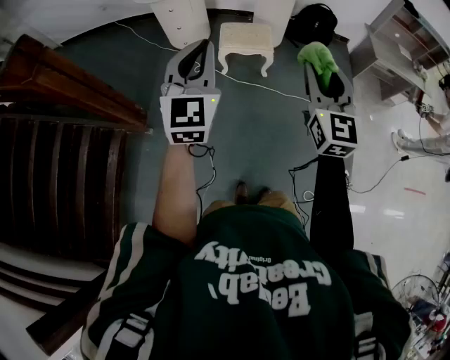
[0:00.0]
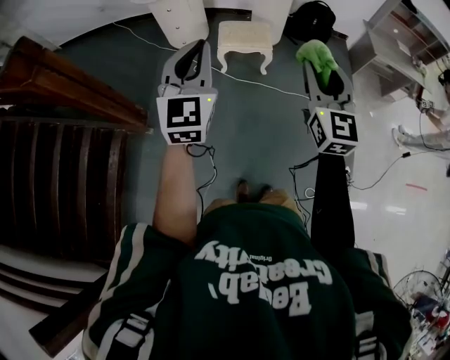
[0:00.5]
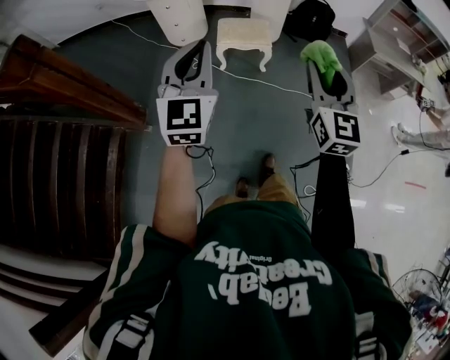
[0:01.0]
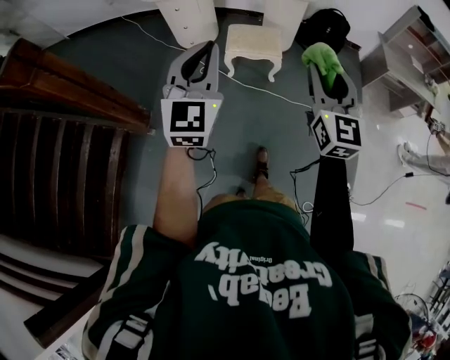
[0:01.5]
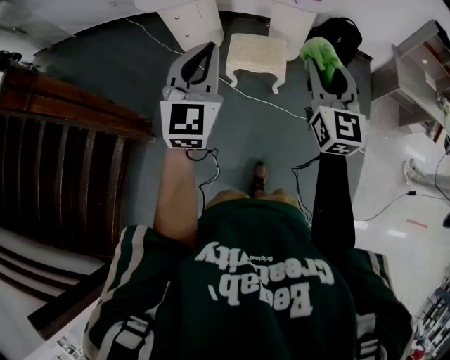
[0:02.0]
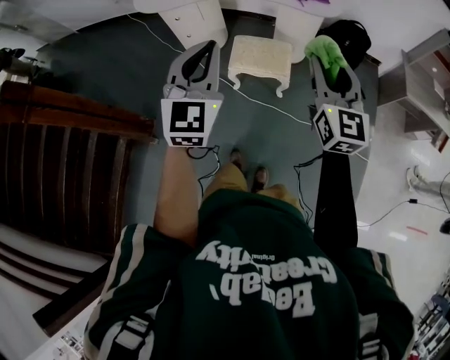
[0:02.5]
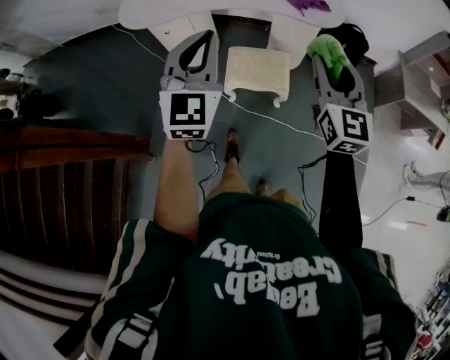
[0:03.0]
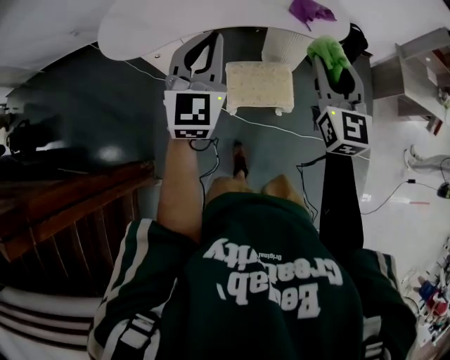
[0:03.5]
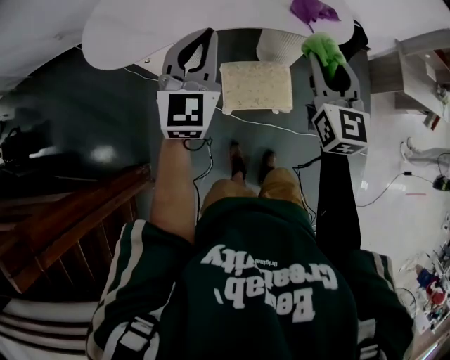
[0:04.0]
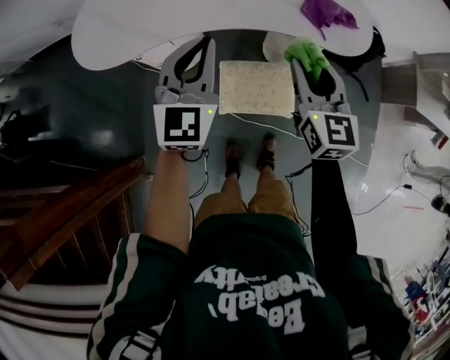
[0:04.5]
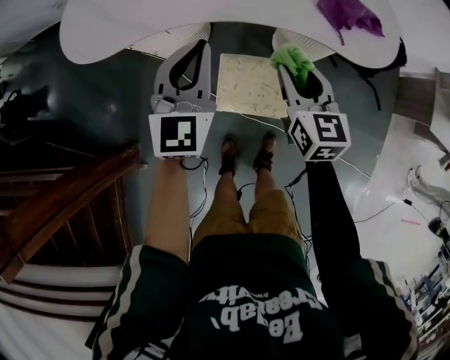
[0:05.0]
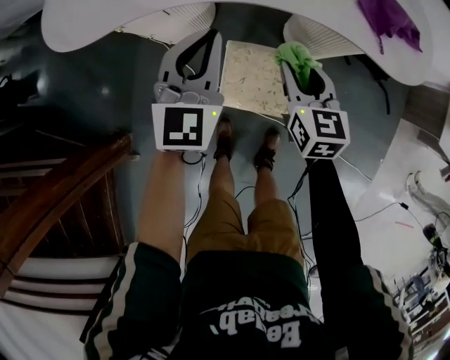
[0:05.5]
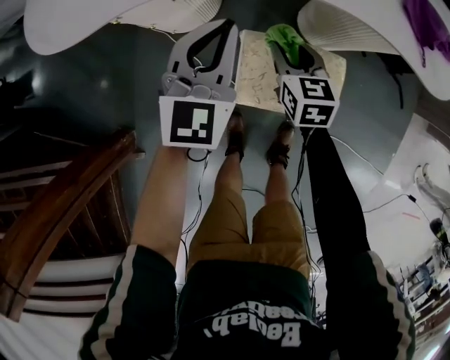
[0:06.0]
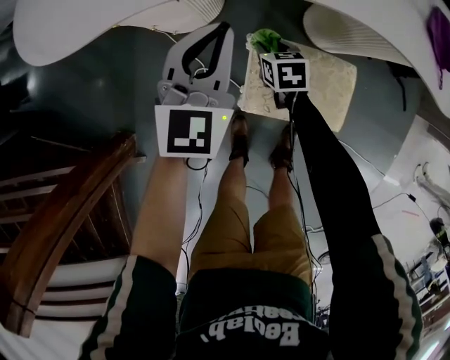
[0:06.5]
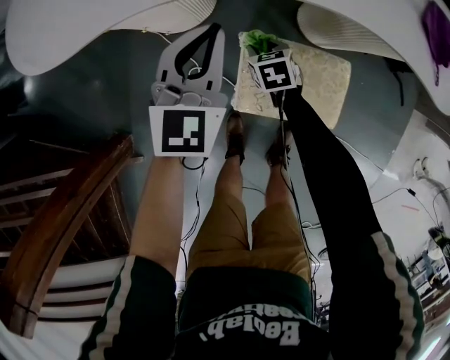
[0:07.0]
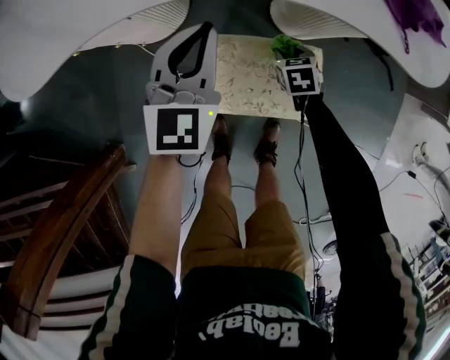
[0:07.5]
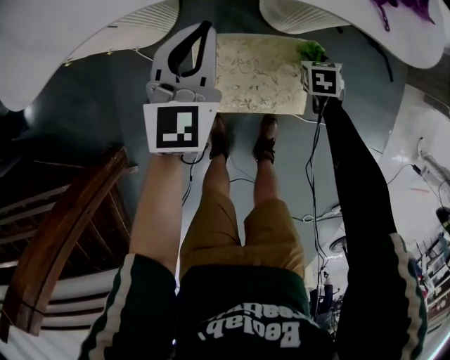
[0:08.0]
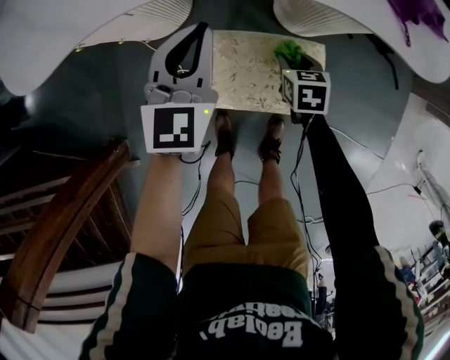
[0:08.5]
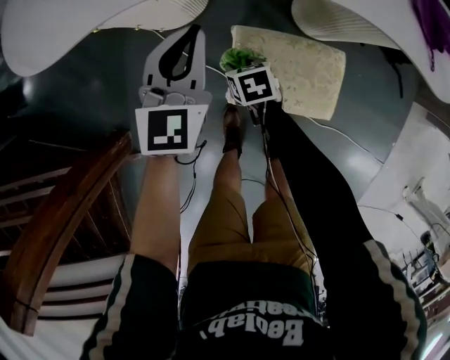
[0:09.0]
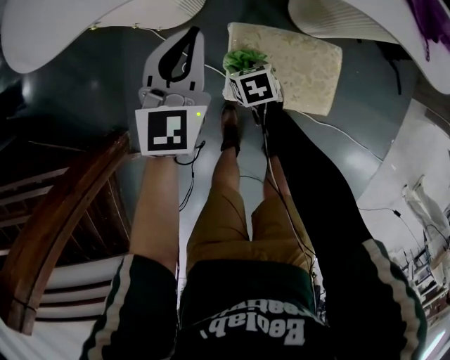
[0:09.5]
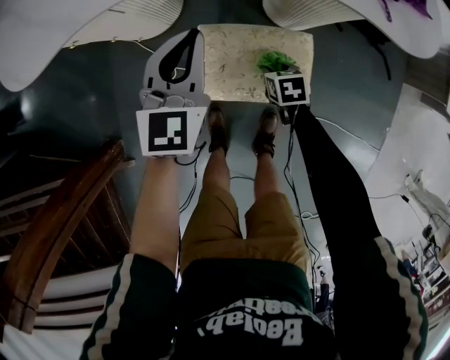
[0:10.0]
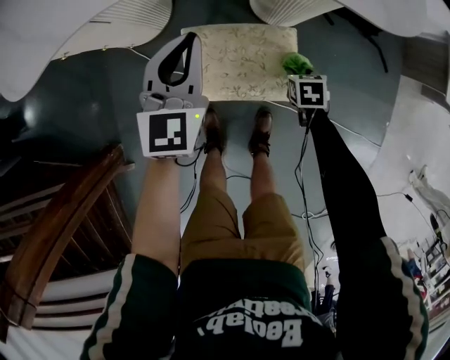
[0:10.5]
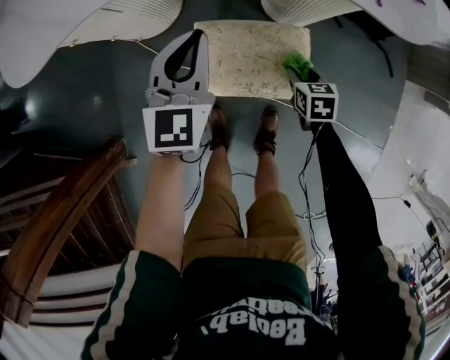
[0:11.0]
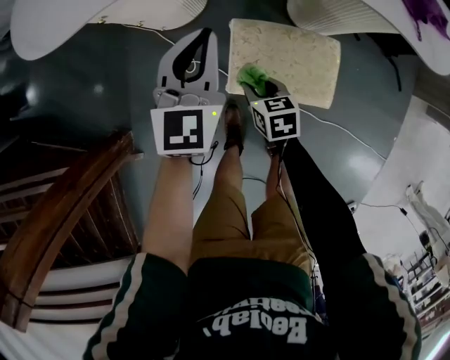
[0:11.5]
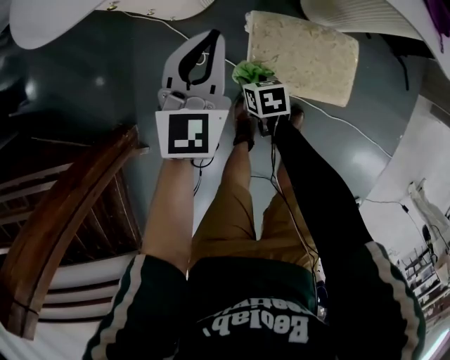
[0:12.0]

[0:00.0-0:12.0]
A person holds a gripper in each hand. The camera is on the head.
0:00.0 to 0:02.0: Both grippers travel together forward, about 20 cm.
0:02.0 to 0:04.0: Both grippers are carried forward, some 40 cm.
0:04.0 to 0:06.0: Both grippers travel together downward, approximately 35 cm. The right gripper swivels some 40 degrees.
0:06.0 to 0:08.0: The left gripper travels to the right by about 10 cm. Meanwhile the right gripper is displaced to the right and downward by about 30 cm, and points its fingers roughly 30 degrees further downward.
0:10.0 to 0:12.0: The left gripper is displaced to the left by approximately 10 cm, while the right gripper is displaced to the left by about 20 cm.

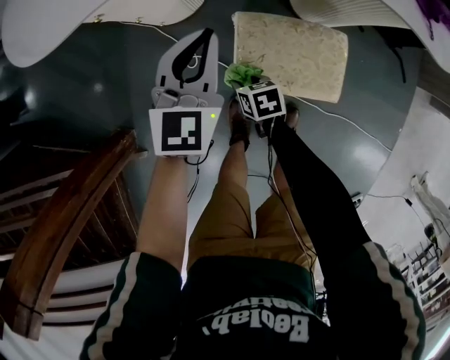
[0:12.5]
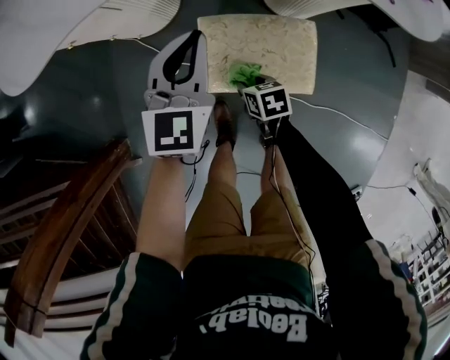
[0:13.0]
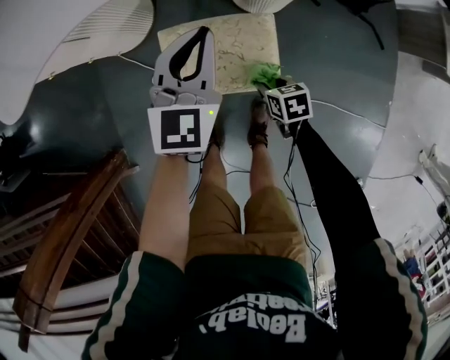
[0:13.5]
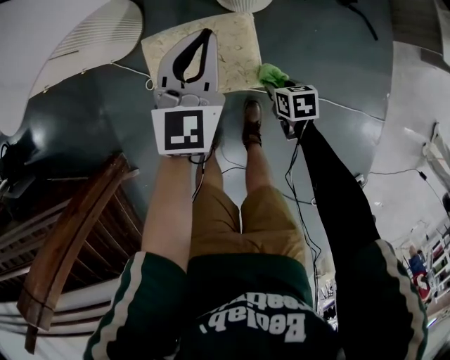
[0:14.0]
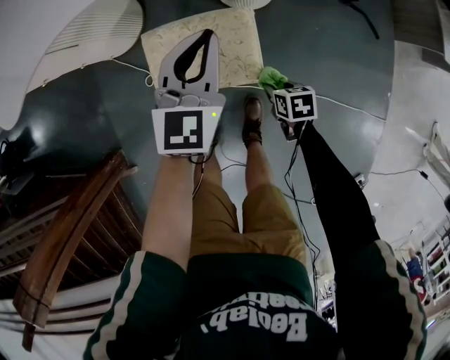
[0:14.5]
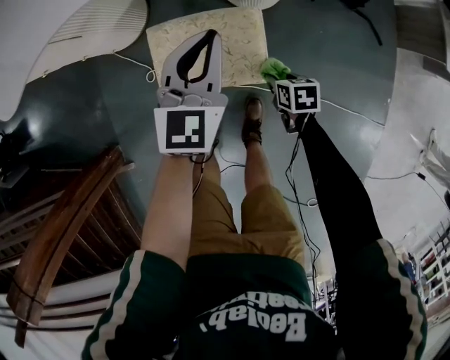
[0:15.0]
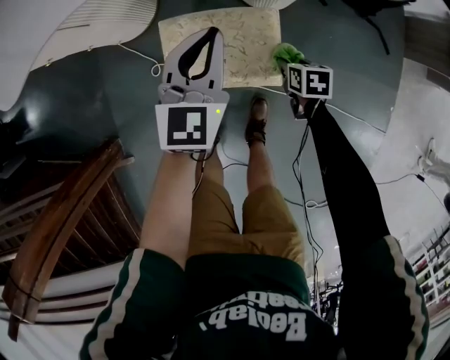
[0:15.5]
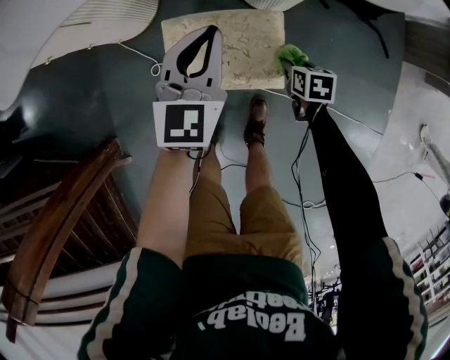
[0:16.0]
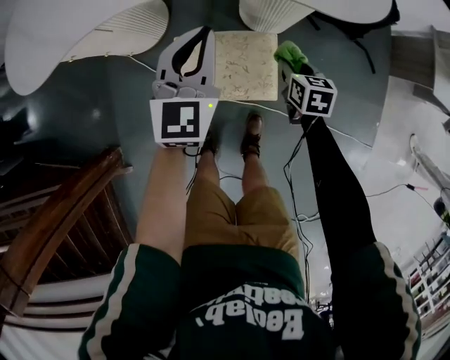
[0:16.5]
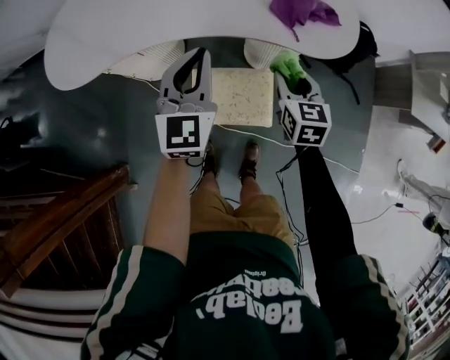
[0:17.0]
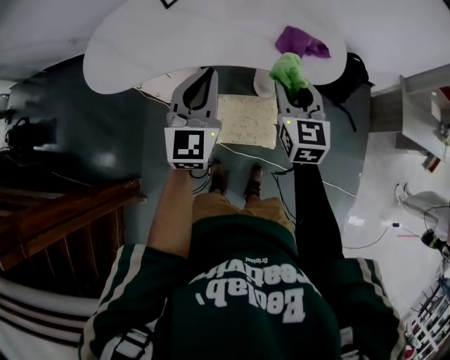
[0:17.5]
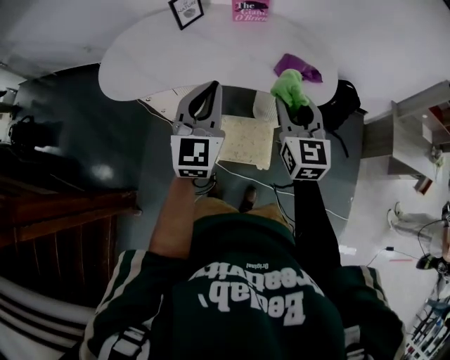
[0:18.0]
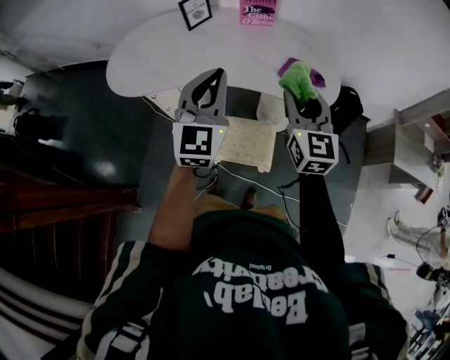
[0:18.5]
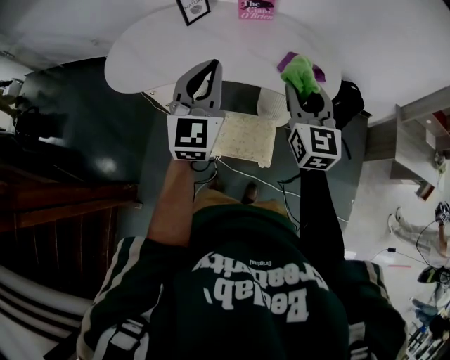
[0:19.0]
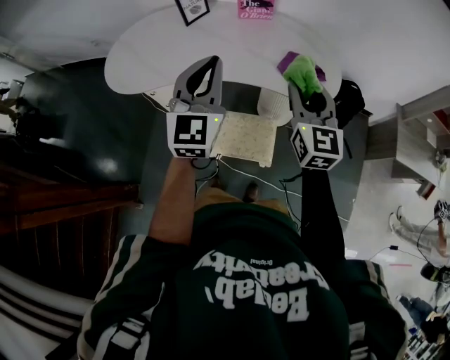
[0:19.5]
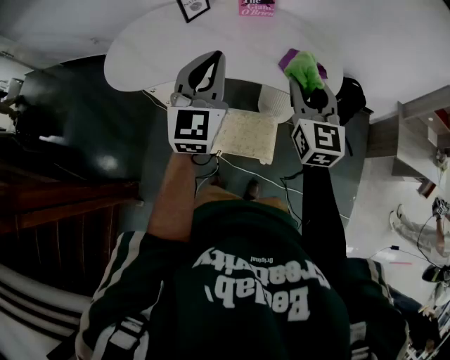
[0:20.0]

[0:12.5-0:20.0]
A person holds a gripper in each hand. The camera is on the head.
0:12.5 to 0:14.5: The left gripper shifts approximately 30 cm to the right; the right gripper travels to the right and backward by roughly 35 cm.
0:14.5 to 0:16.5: The right gripper travels forward and upward by some 20 cm, and turns by roughly 20 degrees. Meanwhile the left gripper travels to the left and upward by roughly 10 cm.
0:16.5 to 0:18.0: The left gripper goes approximately 30 cm upward, while the right gripper shifts approximately 50 cm upward, and tilts its fingers about 40 degrees upward.
0:18.0 to 0:20.0: The left gripper goes roughly 5 cm upward.

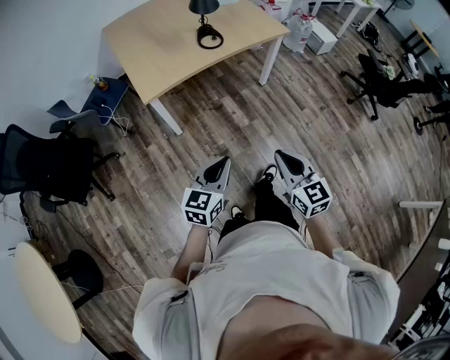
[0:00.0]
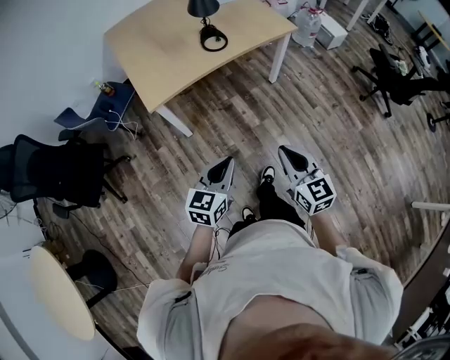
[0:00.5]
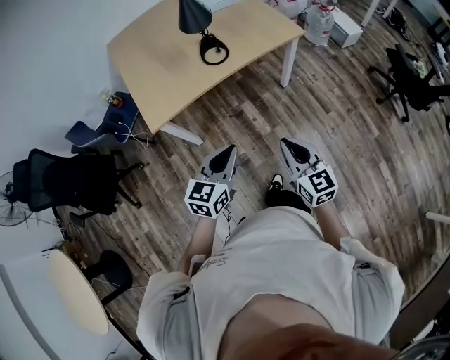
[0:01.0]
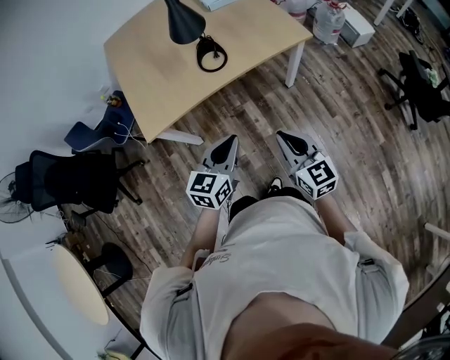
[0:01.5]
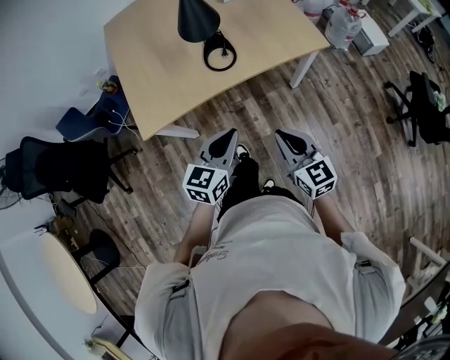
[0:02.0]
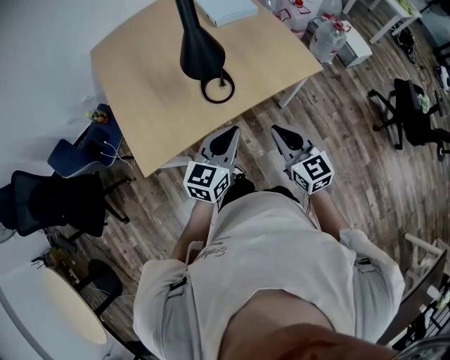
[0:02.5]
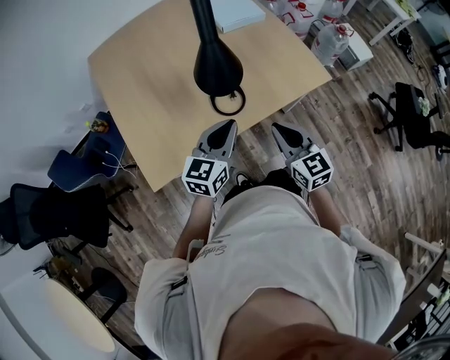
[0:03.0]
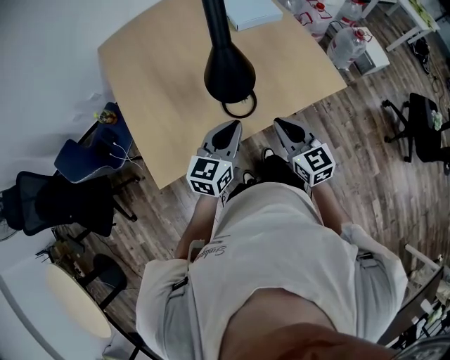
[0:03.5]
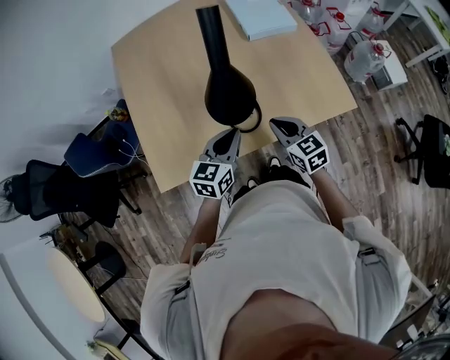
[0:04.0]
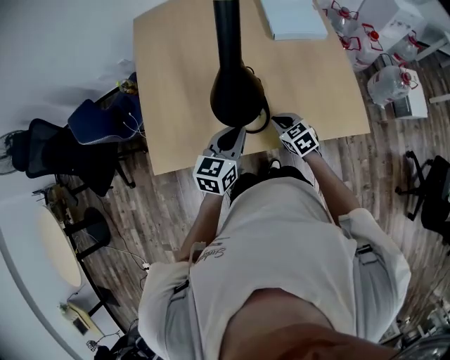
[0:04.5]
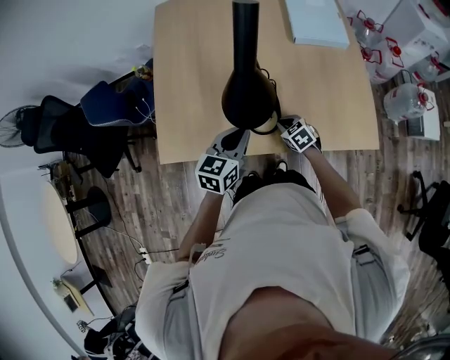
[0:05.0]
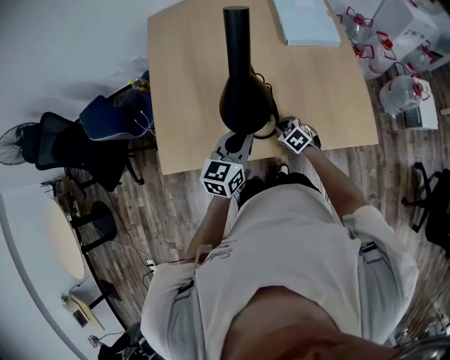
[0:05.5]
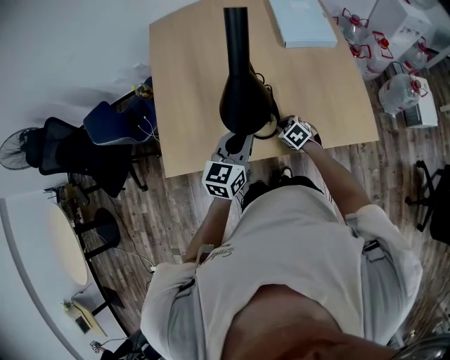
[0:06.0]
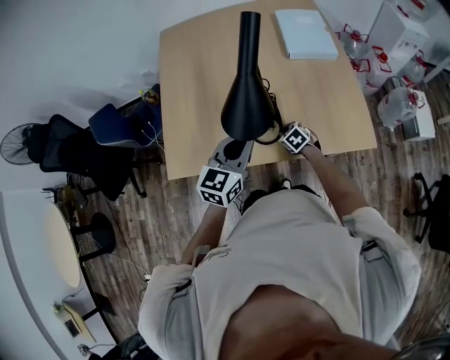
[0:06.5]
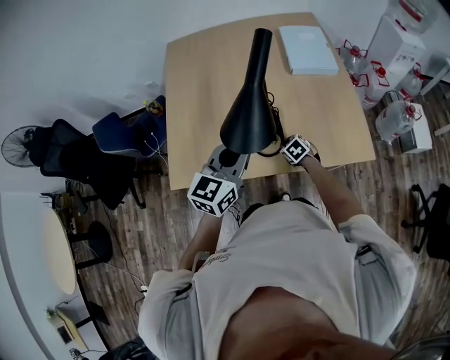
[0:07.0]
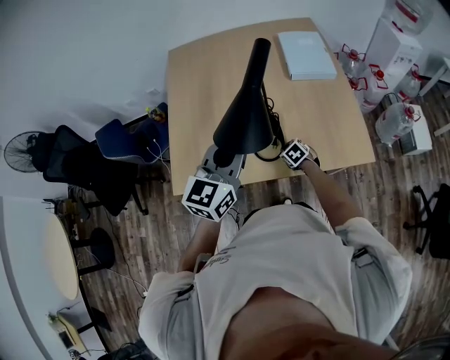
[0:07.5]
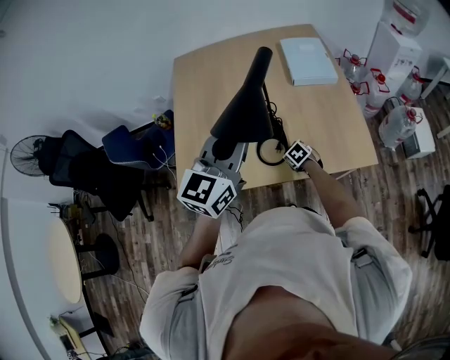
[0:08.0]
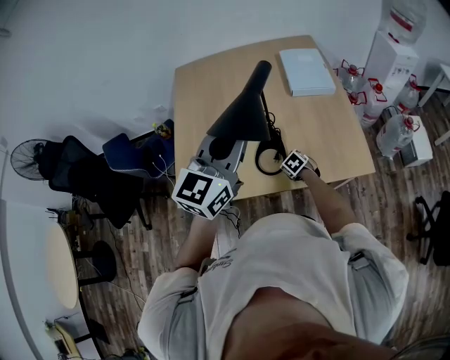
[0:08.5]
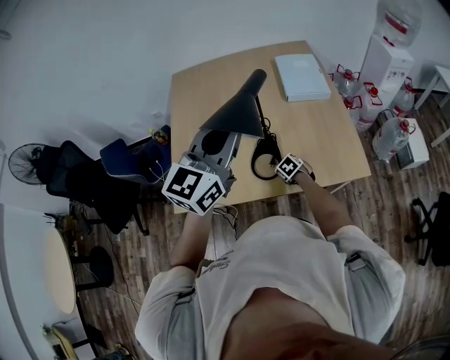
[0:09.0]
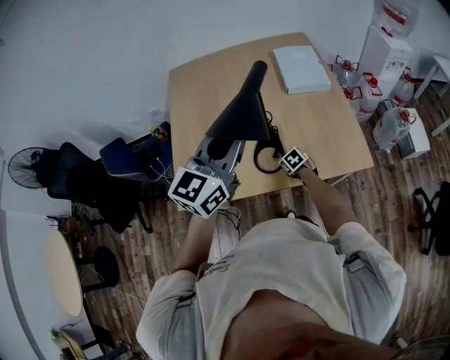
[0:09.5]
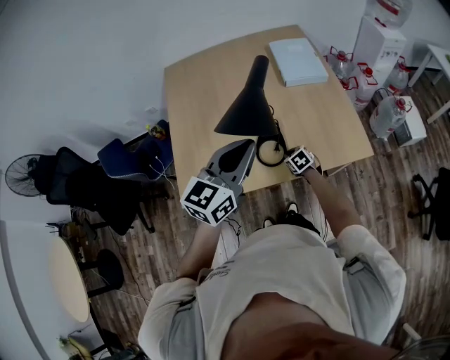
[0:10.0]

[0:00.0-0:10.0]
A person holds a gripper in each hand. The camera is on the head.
0:00.0 to 0:02.0: Both grippers travel together forward, approximately 40 cm.
0:02.0 to 0:04.0: The two grippers go roughly 30 cm forward.
0:04.0 to 0:06.0: The right gripper goes about 20 cm downward, and changes its angle by some 40 degrees.
0:06.0 to 0:08.0: The left gripper is displaced upward by about 20 cm, and rotates roughly 20 degrees.
0:08.0 to 0:10.0: The left gripper moves roughly 5 cm upward and comes back.
